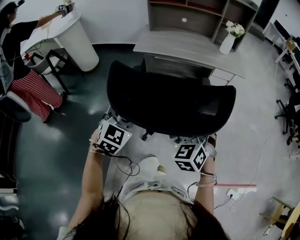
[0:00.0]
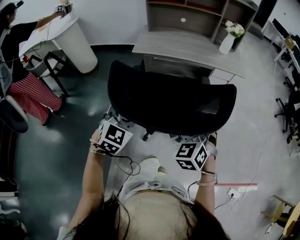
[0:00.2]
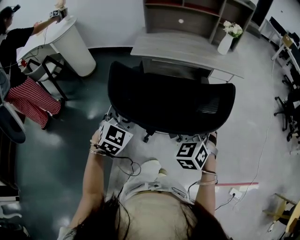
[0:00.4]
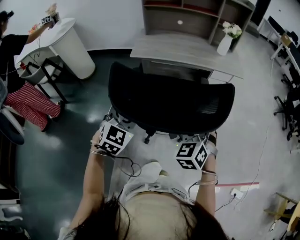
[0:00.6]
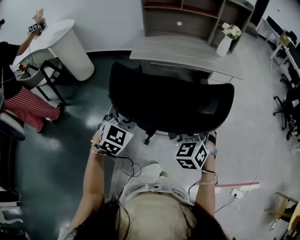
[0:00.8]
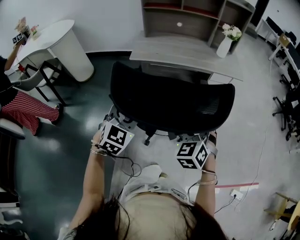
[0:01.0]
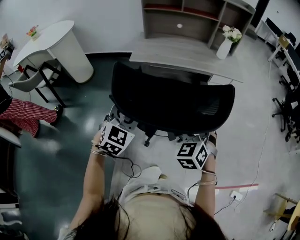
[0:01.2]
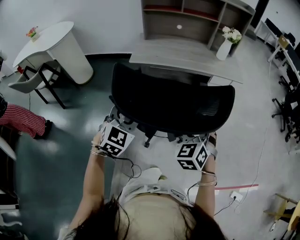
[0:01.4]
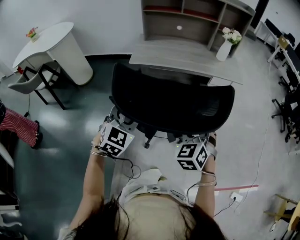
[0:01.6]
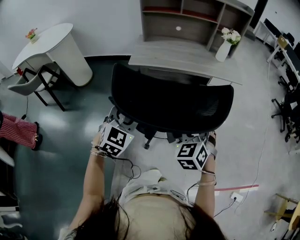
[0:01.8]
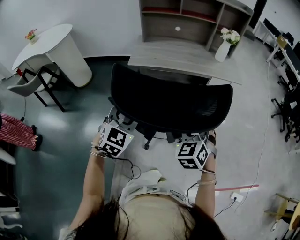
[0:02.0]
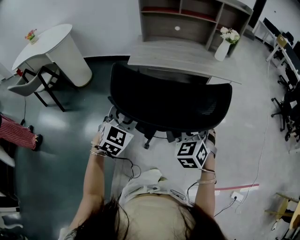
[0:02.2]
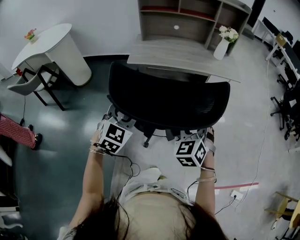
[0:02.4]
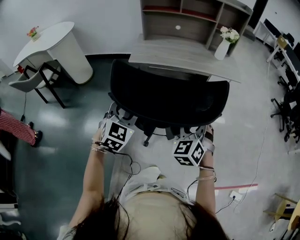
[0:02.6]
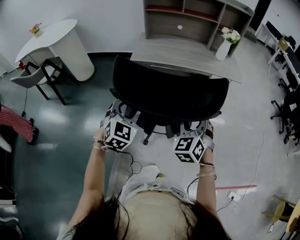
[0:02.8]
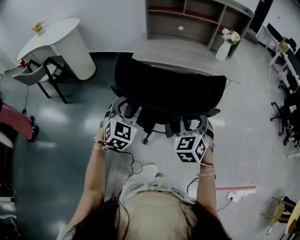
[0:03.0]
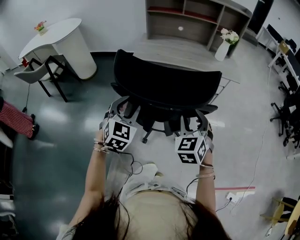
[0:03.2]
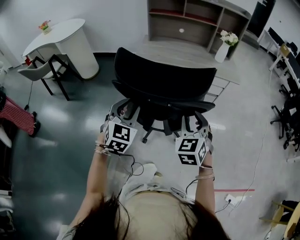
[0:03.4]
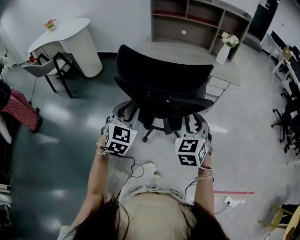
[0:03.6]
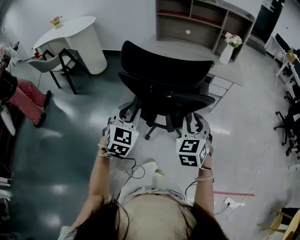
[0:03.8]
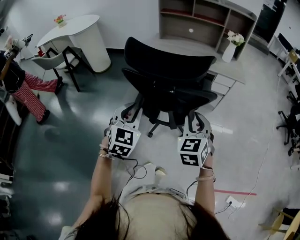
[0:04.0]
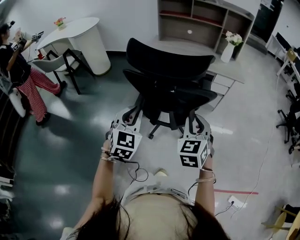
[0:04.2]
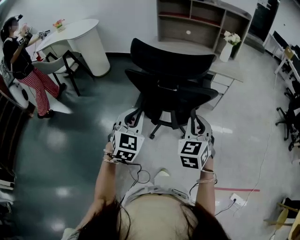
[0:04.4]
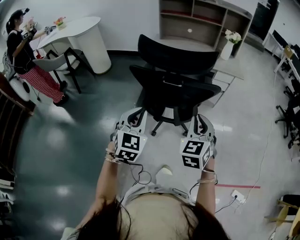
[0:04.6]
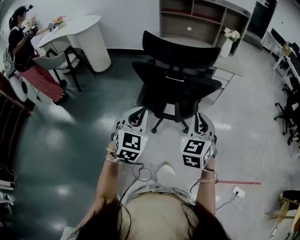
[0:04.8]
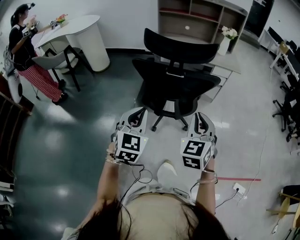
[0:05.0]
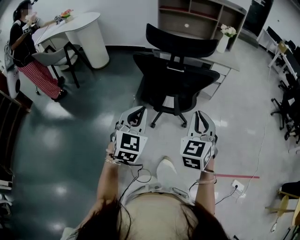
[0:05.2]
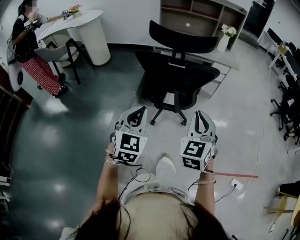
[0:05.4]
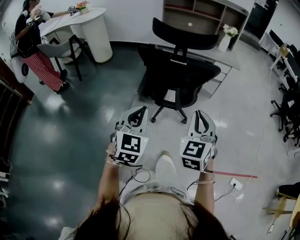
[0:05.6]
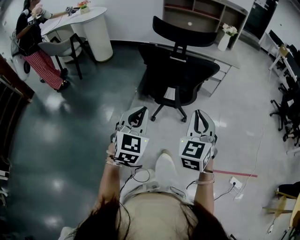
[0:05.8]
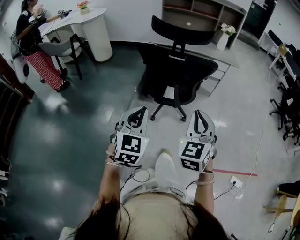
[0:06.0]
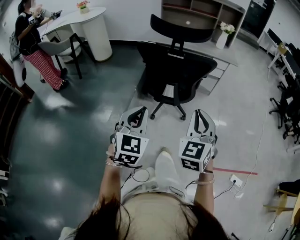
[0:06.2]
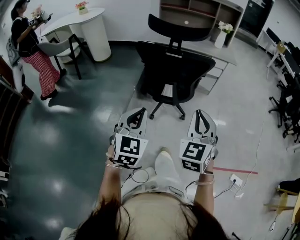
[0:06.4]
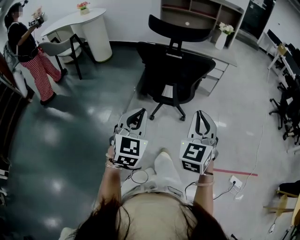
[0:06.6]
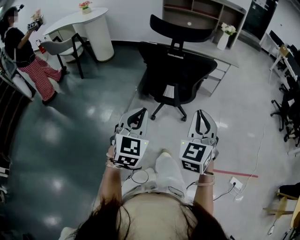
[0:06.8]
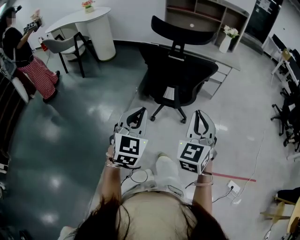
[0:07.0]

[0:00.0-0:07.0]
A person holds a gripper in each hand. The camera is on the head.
0:00.0 to 0:01.4: Both grippers move forward, some 5 cm.
0:01.4 to 0:02.8: The grippers make only small movements.
0:02.8 to 0:04.2: Both grippers move backward, approximately 15 cm. The right gripper closes up. Meanwhile the left gripper closes up.
0:04.2 to 0:05.6: The grippers both shift backward by roughly 20 cm.
0:05.6 to 0:07.0: The left gripper changes place by approximately 5 cm.

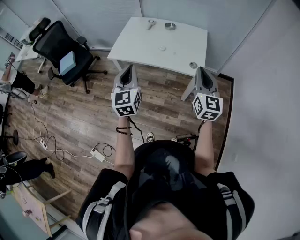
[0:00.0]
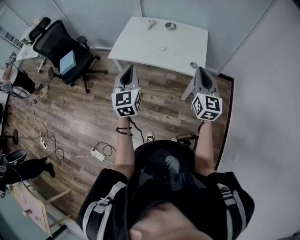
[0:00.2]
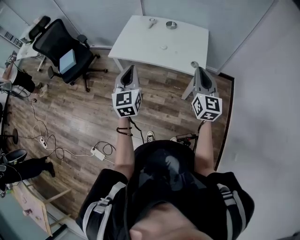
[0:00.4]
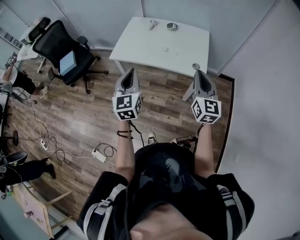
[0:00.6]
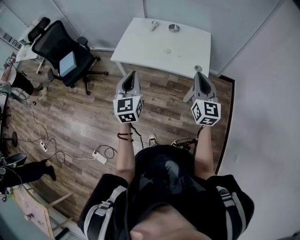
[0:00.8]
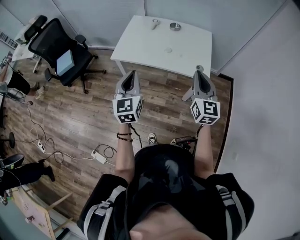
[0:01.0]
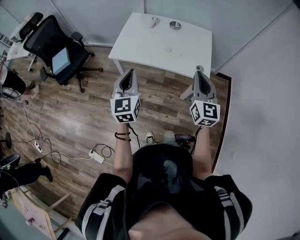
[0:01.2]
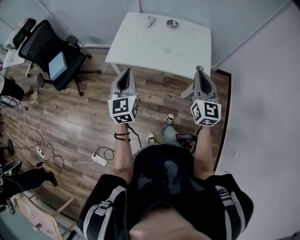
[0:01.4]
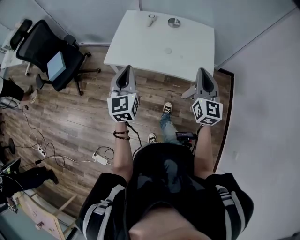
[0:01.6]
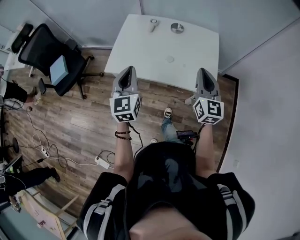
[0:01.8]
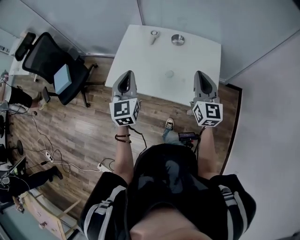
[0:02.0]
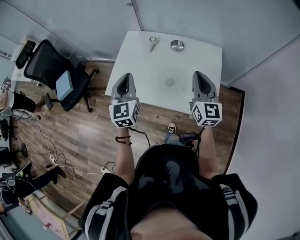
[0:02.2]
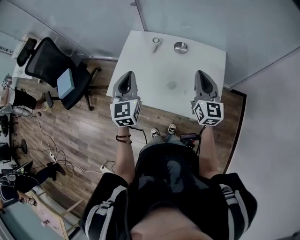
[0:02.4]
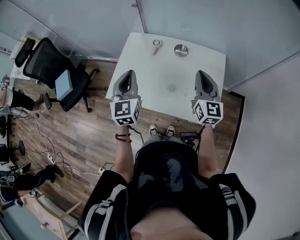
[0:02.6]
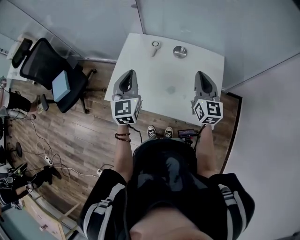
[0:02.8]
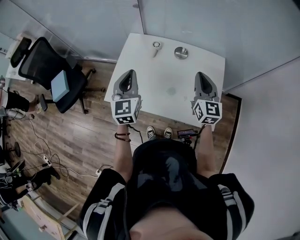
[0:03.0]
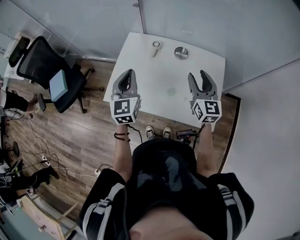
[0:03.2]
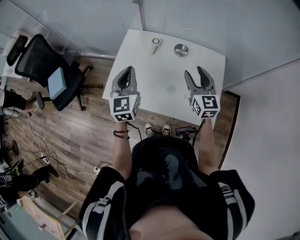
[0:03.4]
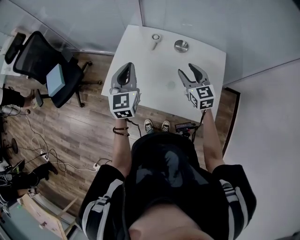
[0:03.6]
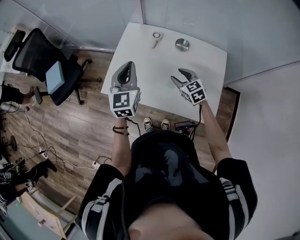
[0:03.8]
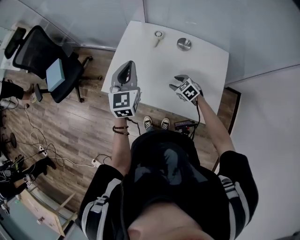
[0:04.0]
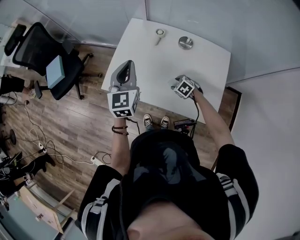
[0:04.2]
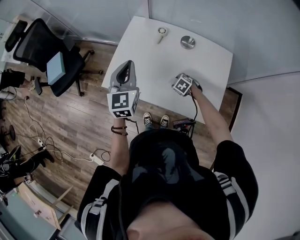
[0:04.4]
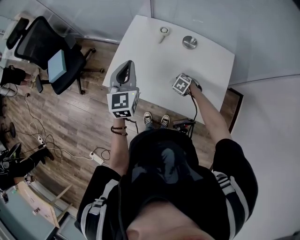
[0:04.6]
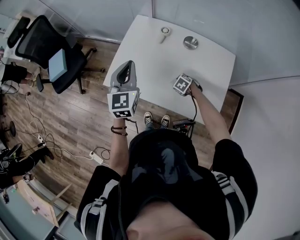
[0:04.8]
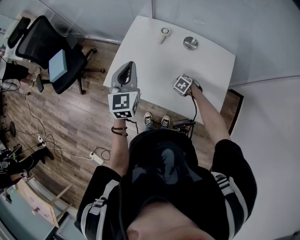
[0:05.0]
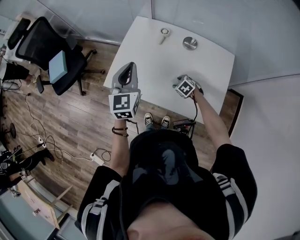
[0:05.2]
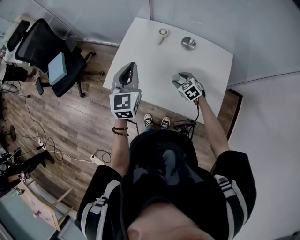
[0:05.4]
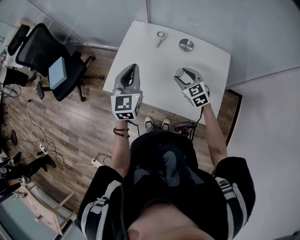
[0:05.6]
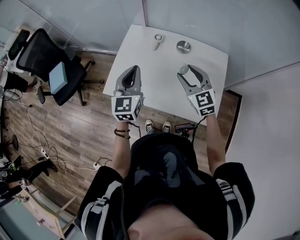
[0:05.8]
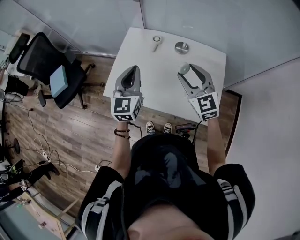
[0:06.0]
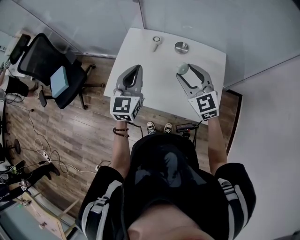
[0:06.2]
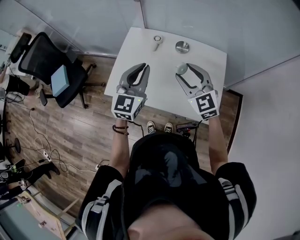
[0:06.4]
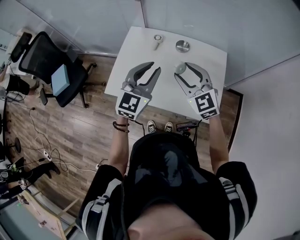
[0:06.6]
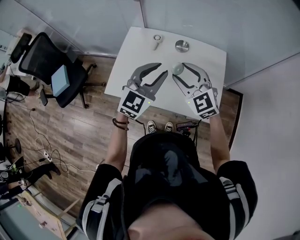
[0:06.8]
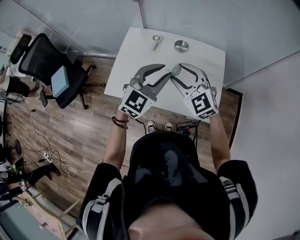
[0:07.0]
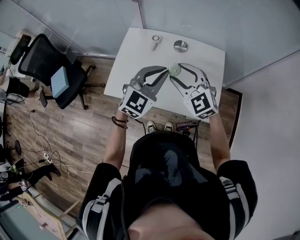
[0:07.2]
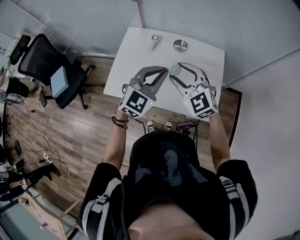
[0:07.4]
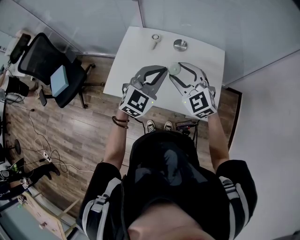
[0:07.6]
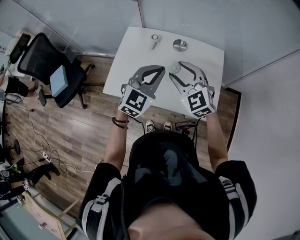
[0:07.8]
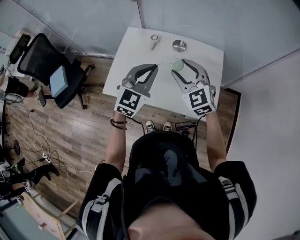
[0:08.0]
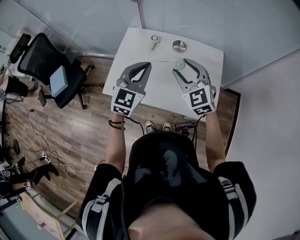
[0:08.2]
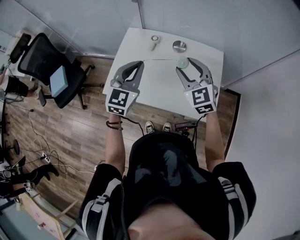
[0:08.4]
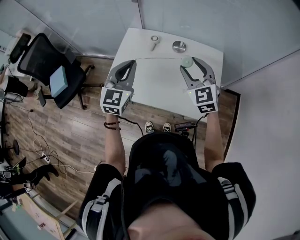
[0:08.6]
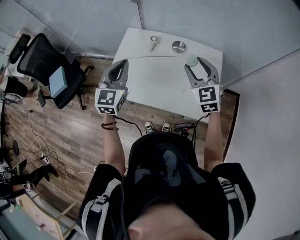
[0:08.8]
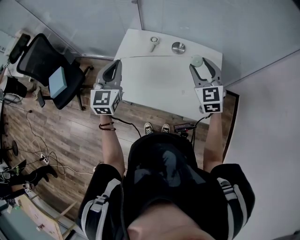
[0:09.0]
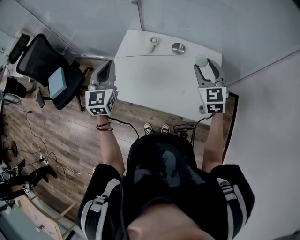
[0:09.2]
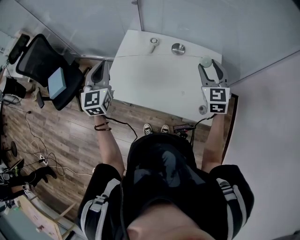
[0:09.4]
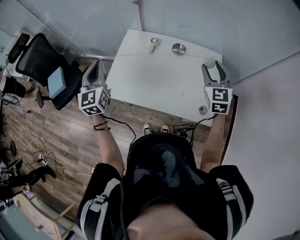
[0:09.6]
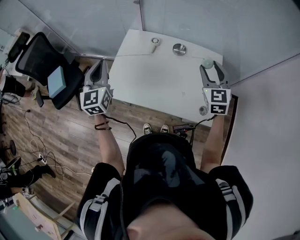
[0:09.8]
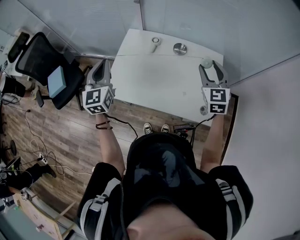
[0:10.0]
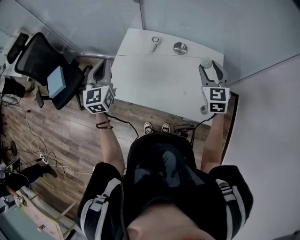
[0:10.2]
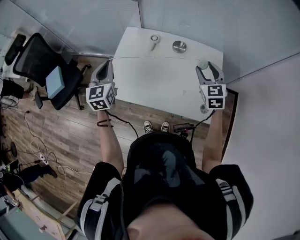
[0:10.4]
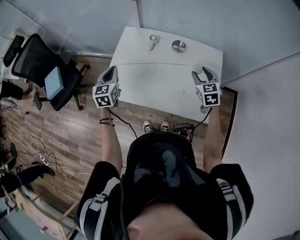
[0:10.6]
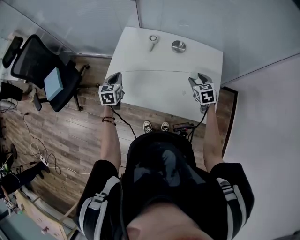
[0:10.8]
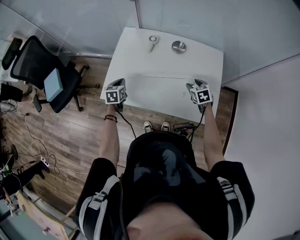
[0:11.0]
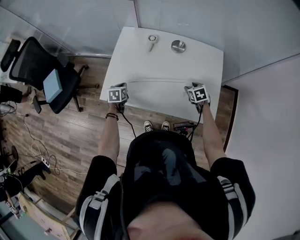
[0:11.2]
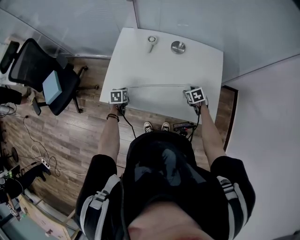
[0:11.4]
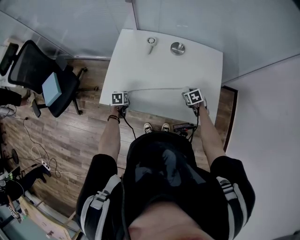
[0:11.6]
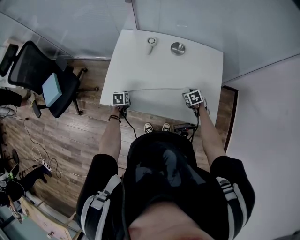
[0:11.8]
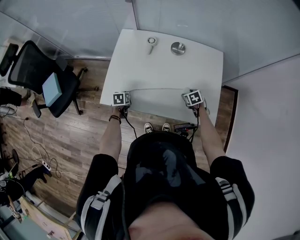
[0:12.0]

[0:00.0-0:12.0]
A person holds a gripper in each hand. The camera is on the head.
0:00.0 to 0:01.6: The grippers both shift forward and to the left by roughly 15 cm.
0:01.6 to 0:03.0: Both grippers travel together forward, approximately 25 cm.
0:03.0 to 0:04.4: The right gripper travels downward by approximately 35 cm, tips its fingers downward by about 70 degrees, and opens.
0:04.4 to 0:06.0: The right gripper is displaced upward by approximately 35 cm, and angles its fingers upward, by some 60 degrees.
0:06.0 to 0:07.6: The left gripper moves to the right, about 10 cm, turns by approximately 40 degrees, and opens, then closes again.
0:07.6 to 0:09.0: The left gripper heads to the left, covering about 15 cm, and changes its angle by roughly 30 degrees, while the right gripper is displaced to the right and forward by some 10 cm, and turns by roughly 20 degrees.
0:09.0 to 0:10.4: The left gripper shifts roughly 5 cm to the left. Meanwhile the right gripper shifts roughly 5 cm downward.
0:10.4 to 0:12.0: The two grippers go some 35 cm downward. The left gripper points its fingers about 50 degrees further downward. The right gripper tips its fingers downward by some 40 degrees.

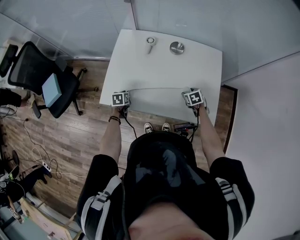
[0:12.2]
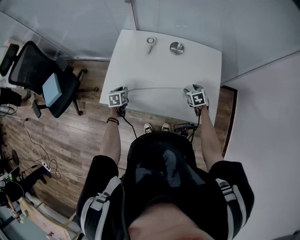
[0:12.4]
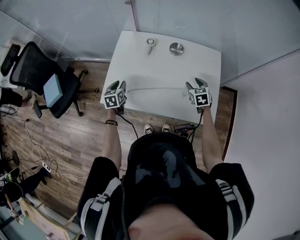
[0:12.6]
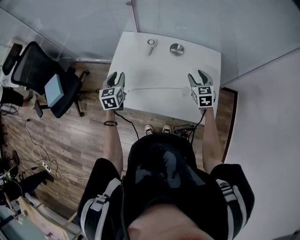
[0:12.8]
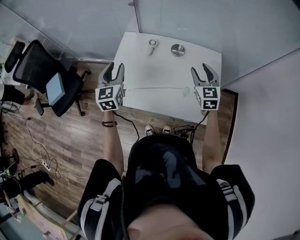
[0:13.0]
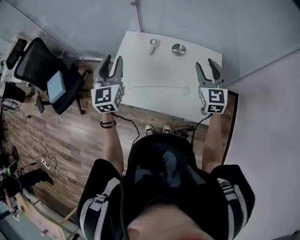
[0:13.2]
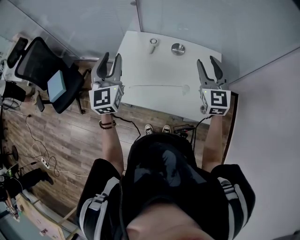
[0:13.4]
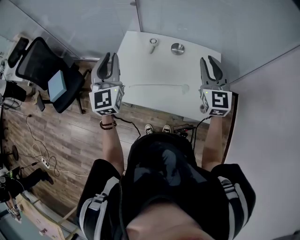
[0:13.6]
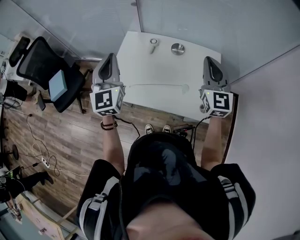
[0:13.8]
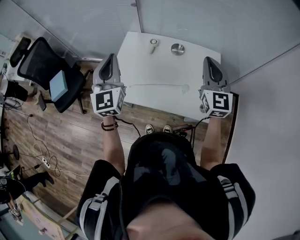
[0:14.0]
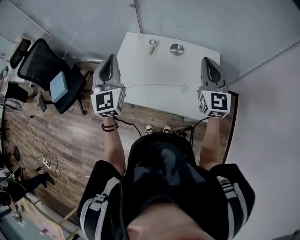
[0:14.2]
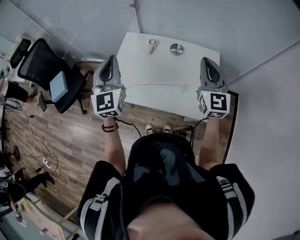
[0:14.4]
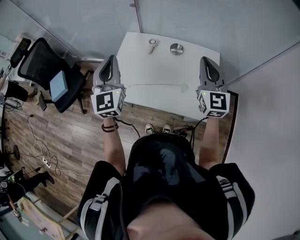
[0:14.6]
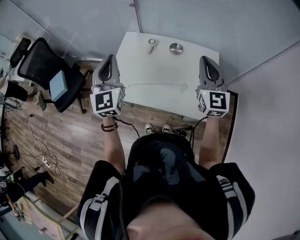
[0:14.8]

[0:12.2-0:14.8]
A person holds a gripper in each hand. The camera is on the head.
0:12.2 to 0:13.4: The two grippers go about 40 cm upward. The right gripper angles its fingers upward, by approximately 60 degrees; the left gripper points its fingers approximately 60 degrees further upward.
0:13.4 to 0:14.8: The right gripper closes, while the left gripper closes its fingers.

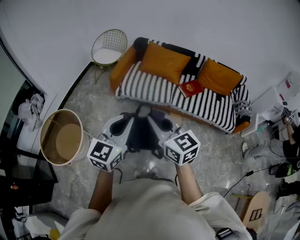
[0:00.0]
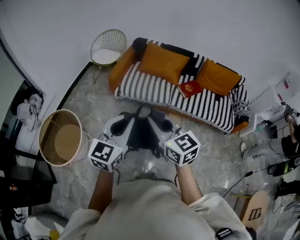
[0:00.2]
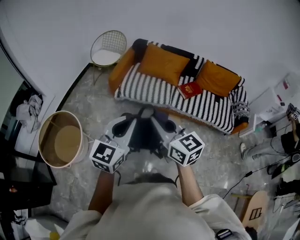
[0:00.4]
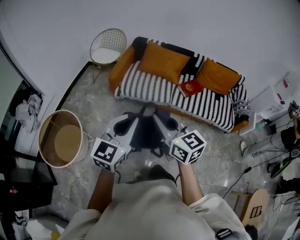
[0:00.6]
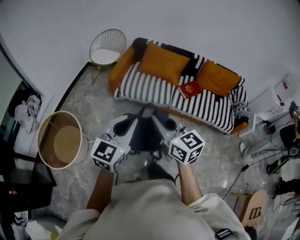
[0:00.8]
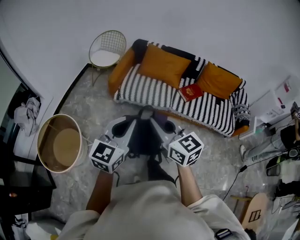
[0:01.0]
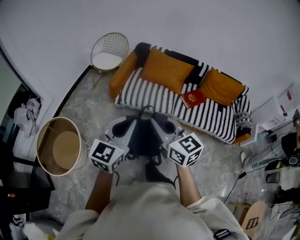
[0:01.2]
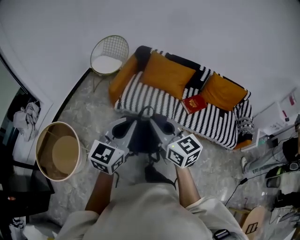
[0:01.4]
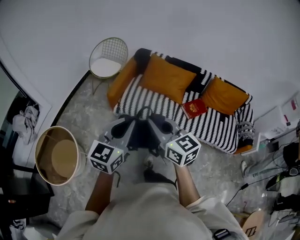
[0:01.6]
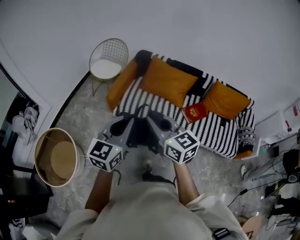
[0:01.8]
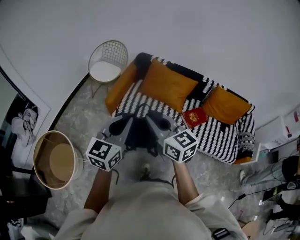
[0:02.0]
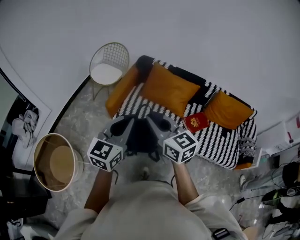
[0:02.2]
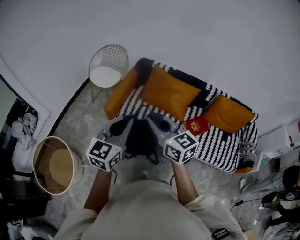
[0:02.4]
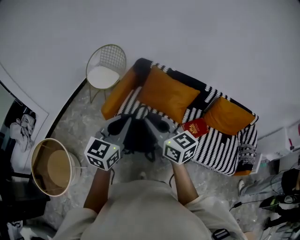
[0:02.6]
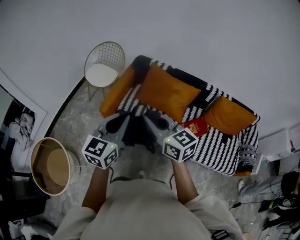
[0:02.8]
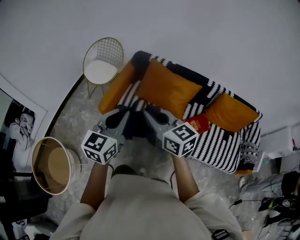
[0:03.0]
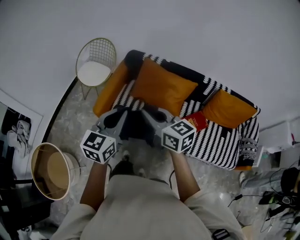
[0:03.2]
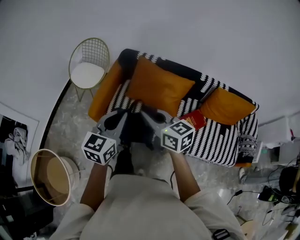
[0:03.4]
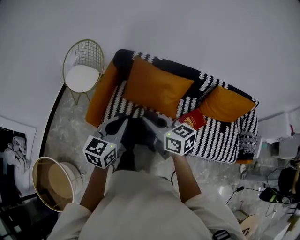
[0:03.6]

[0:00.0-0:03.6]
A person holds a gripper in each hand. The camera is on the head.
0:00.0 to 0:01.8: The grippers both shift forward by approximately 30 cm.
0:01.8 to 0:03.6: The left gripper moves forward, approximately 35 cm, while the right gripper travels forward and to the right by about 40 cm.
